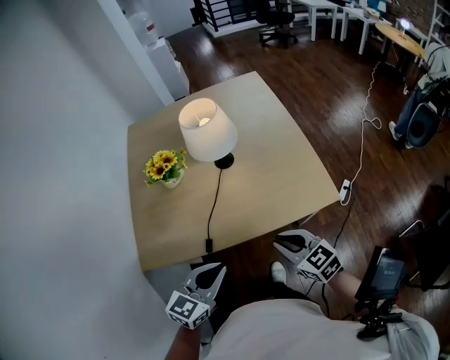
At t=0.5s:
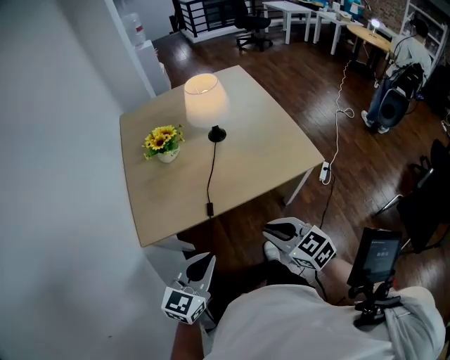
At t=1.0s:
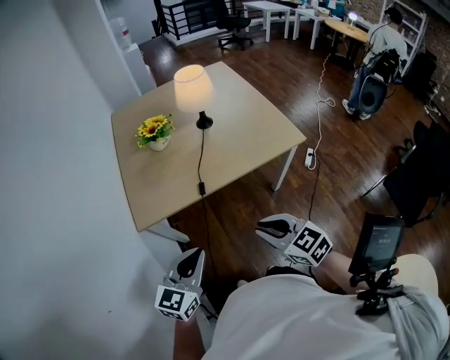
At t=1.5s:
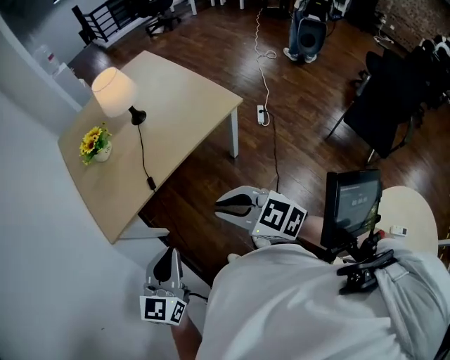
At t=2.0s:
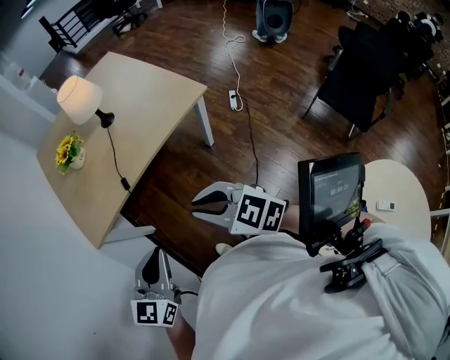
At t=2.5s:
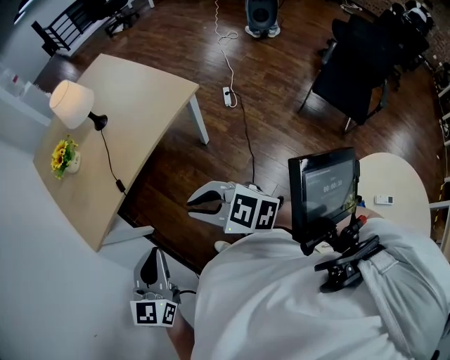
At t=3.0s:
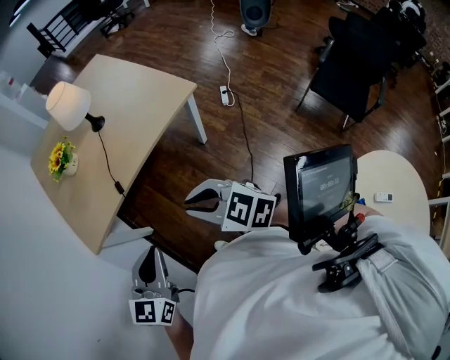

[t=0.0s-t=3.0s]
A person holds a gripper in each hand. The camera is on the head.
t=0.0s to t=1.5s: The grippers both shift backward and to the left by approximately 25 cm.
t=1.5s to t=3.0s: The two grippers go about 5 cm to the right.

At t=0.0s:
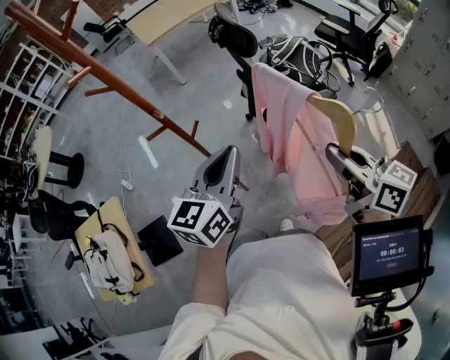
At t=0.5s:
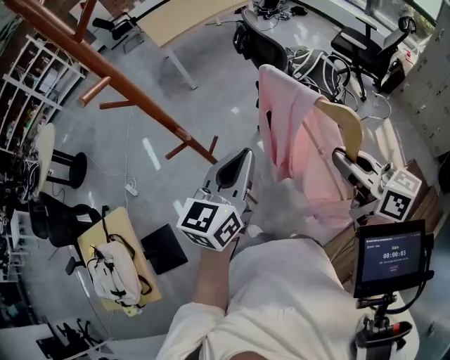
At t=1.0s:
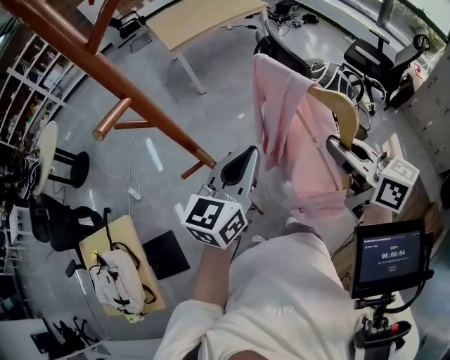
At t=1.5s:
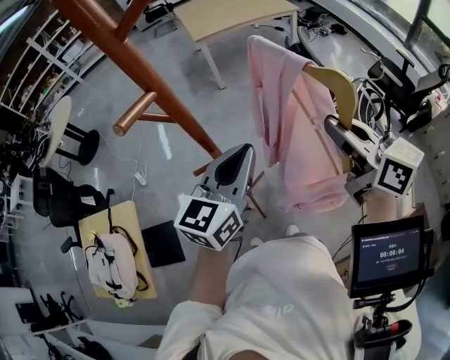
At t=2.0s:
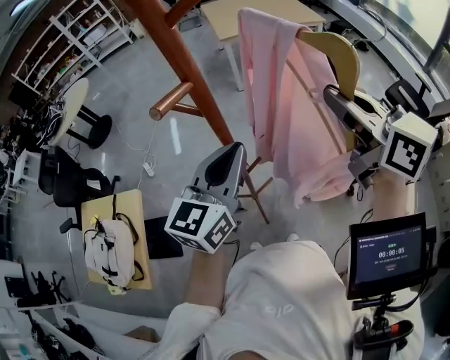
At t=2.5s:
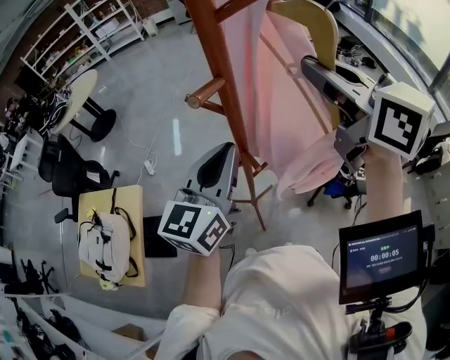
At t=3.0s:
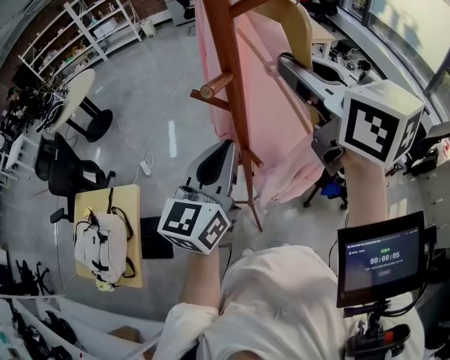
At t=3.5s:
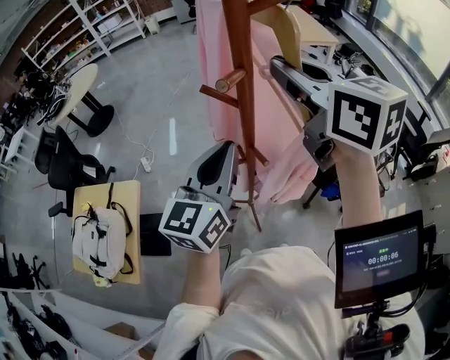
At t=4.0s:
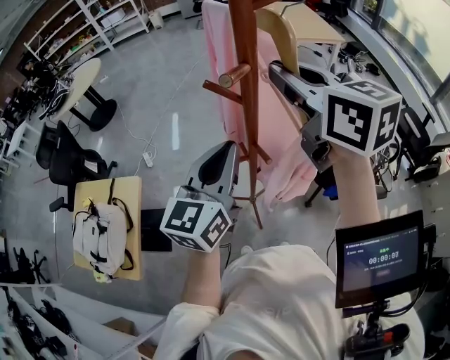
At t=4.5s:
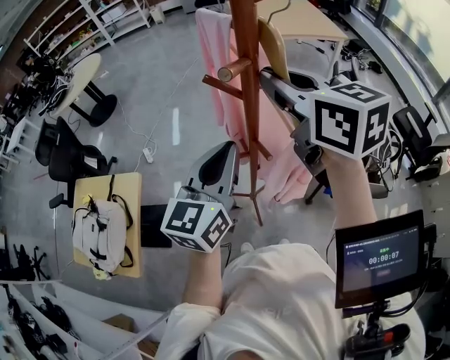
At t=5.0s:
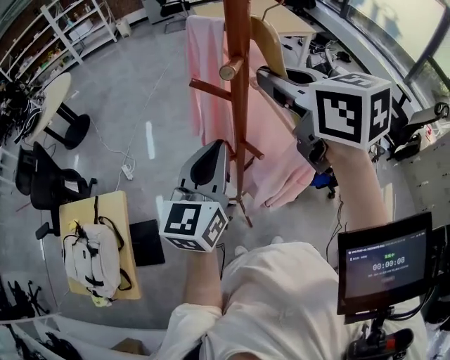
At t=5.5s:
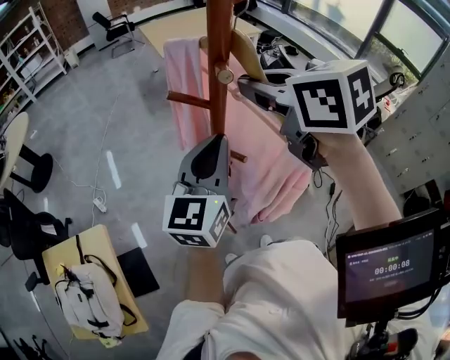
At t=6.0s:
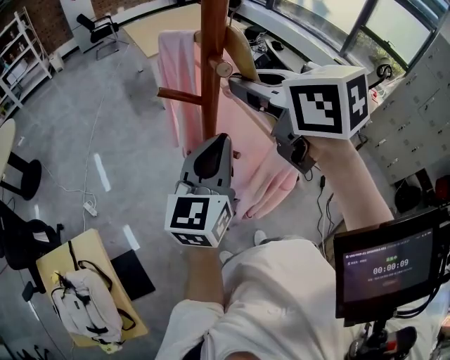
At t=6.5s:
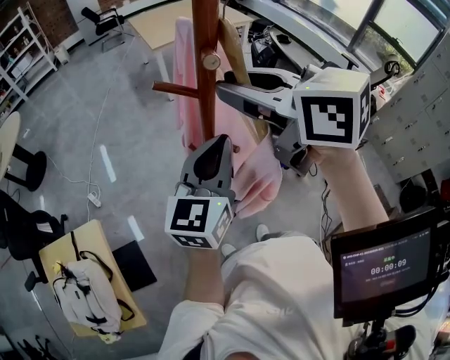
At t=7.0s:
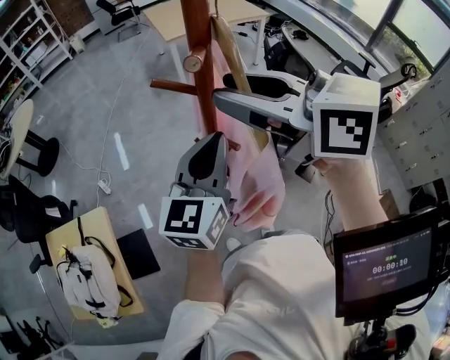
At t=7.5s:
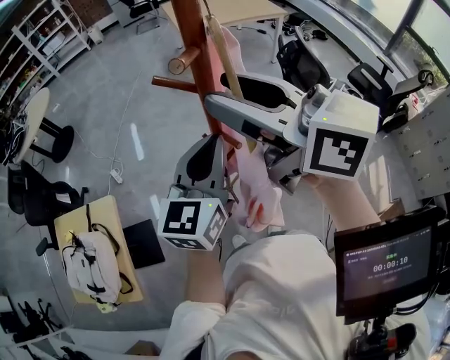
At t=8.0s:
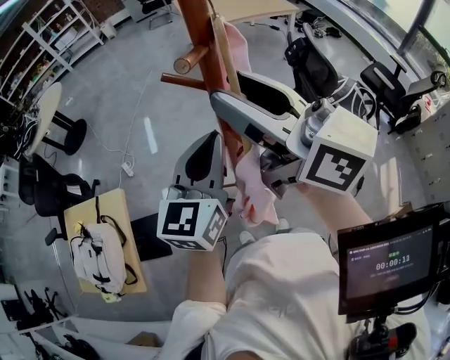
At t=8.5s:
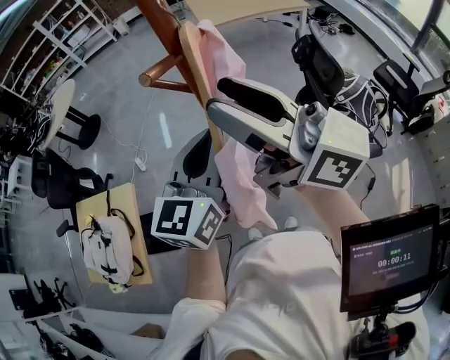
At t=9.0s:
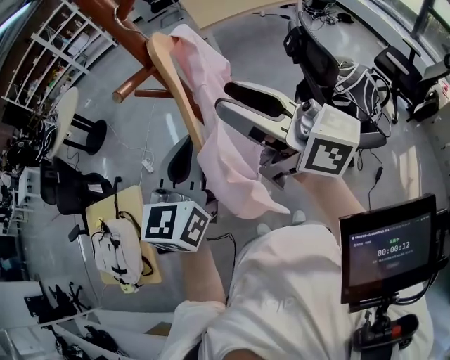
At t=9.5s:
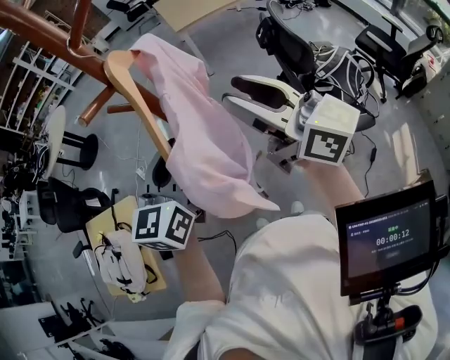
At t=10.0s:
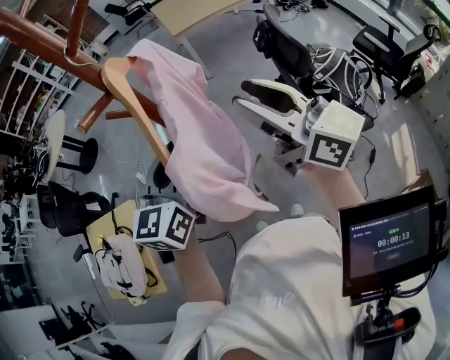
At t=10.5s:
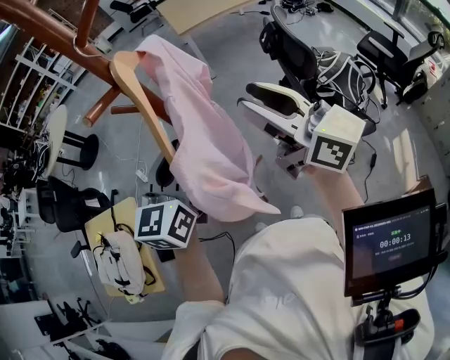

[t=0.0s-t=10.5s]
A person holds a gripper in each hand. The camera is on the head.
t=0.0s to t=2.0s: The left gripper shifts approximately 25 cm forward and to the left. Meanwhile the right gripper heads forward, to the left and upward, covering some 40 cm, and changes its angle by roughly 20 degrees.
t=2.0s to t=4.0s: The left gripper heads to the left, covering about 10 cm, while the right gripper heads to the left, covering approximately 15 cm.
t=4.0s to t=6.5s: The right gripper heads backward, covering about 5 cm.
t=6.5s to t=8.5s: The right gripper is displaced backward by approximately 5 cm, tilts its fingers about 40 degrees upward, and opens.
t=8.5s to t=10.5s: The right gripper travels to the right and downward by approximately 15 cm.

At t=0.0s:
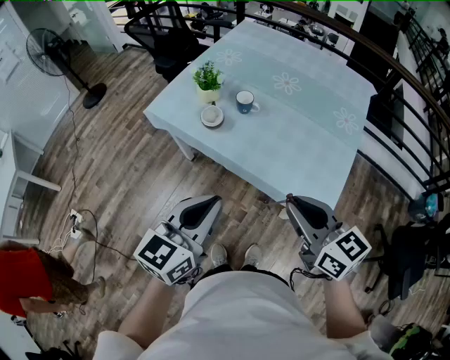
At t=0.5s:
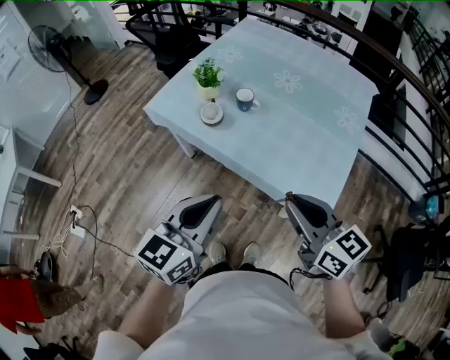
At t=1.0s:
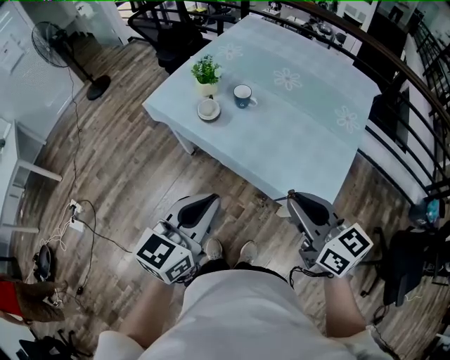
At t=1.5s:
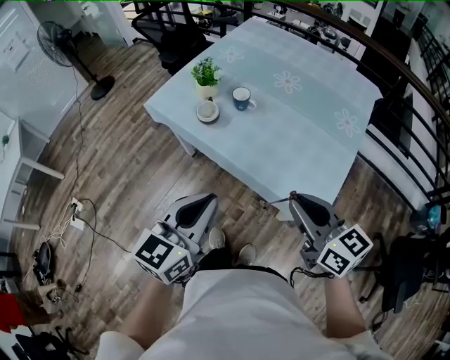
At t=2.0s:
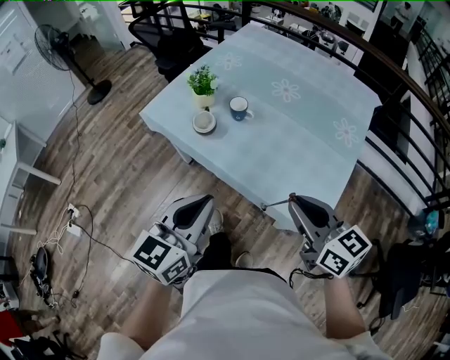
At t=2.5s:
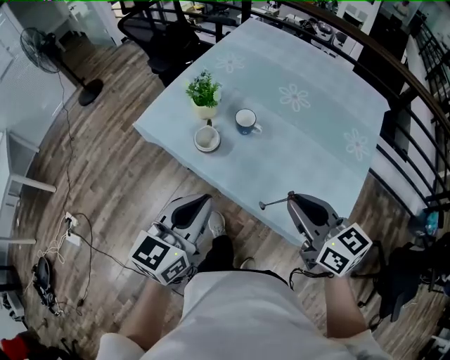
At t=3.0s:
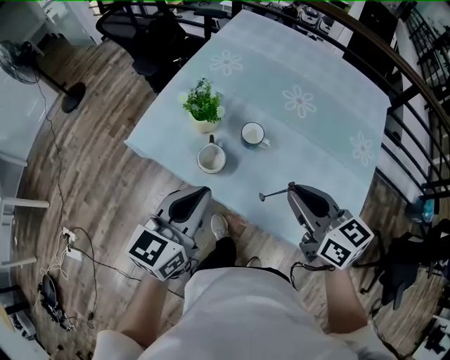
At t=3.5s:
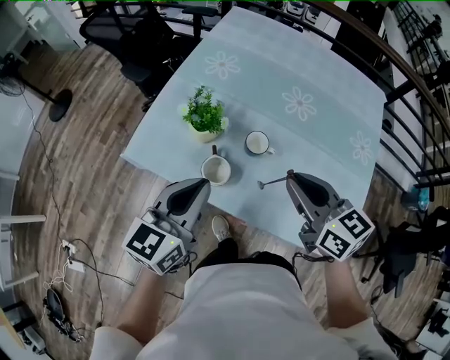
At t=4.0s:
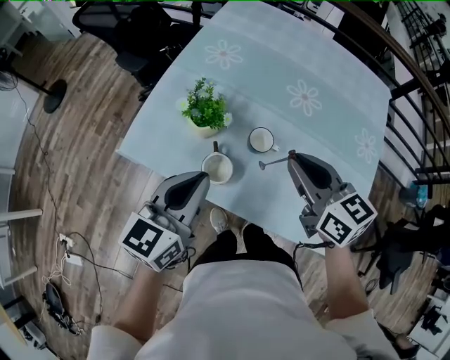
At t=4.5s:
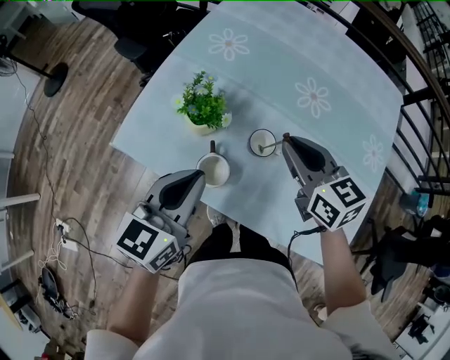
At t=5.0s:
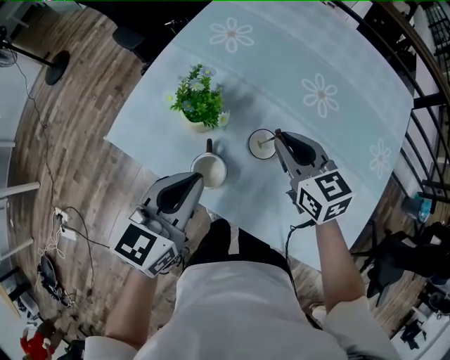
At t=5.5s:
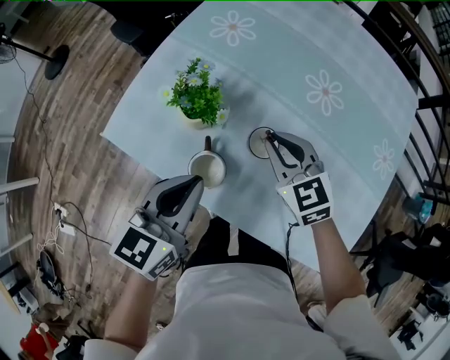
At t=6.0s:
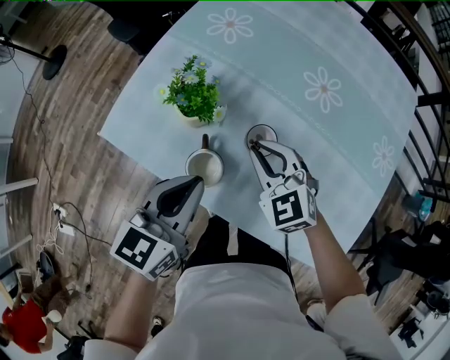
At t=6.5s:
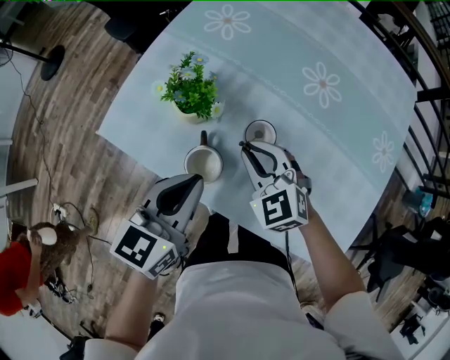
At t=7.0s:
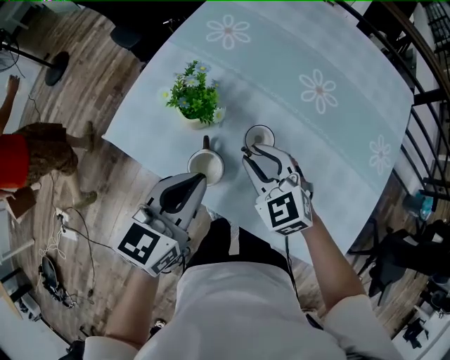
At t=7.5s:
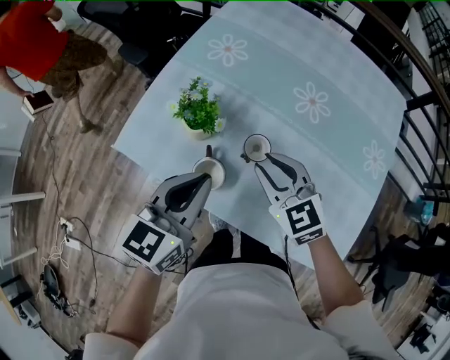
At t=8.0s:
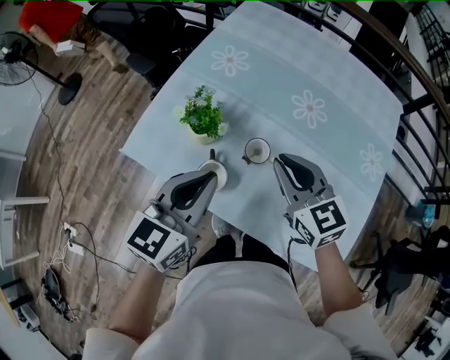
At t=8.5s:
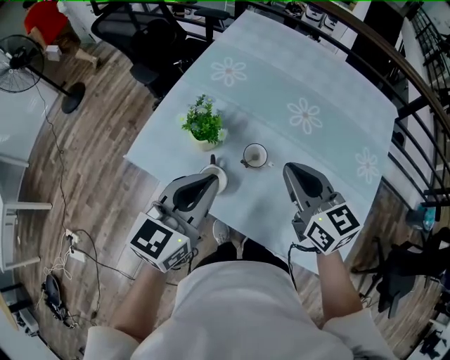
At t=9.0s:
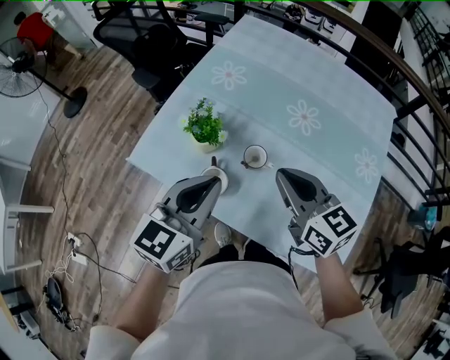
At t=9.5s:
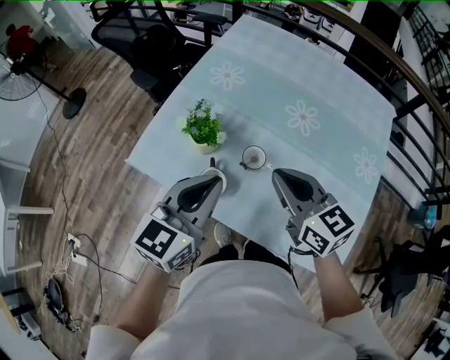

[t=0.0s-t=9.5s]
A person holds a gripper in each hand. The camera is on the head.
t=0.0s to t=2.0s: The right gripper moves to the right, approximately 5 cm, while the left gripper changes place by some 5 cm.
t=2.0s to t=4.0s: Both grippers move forward and to the left, some 35 cm.
t=4.0s to t=5.5s: The left gripper heads downward, covering about 10 cm; the right gripper moves downward and forward, some 15 cm, and rotates roughly 30 degrees.
t=5.5s to t=7.5s: The left gripper shifts some 5 cm upward. The right gripper heads upward and backward, covering some 10 cm.
t=7.5s to t=9.5s: The right gripper is displaced upward by about 10 cm, swivels roughly 20 degrees, and closes up, while the left gripper is displaced upward by roughly 5 cm.

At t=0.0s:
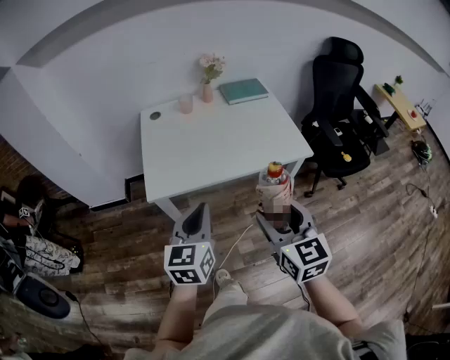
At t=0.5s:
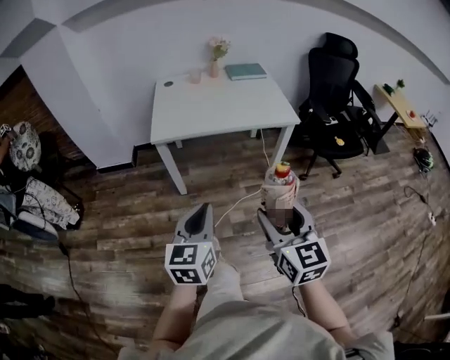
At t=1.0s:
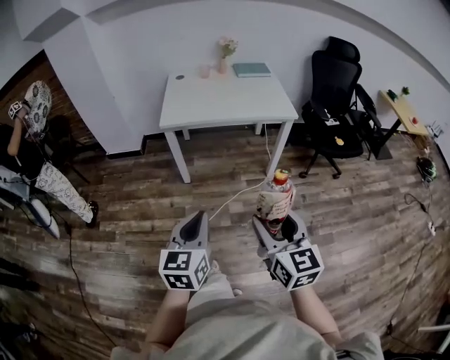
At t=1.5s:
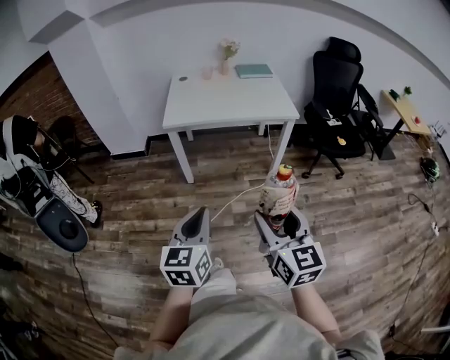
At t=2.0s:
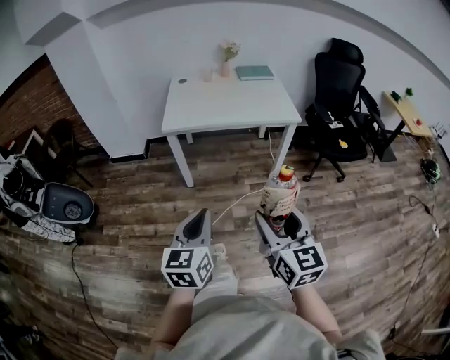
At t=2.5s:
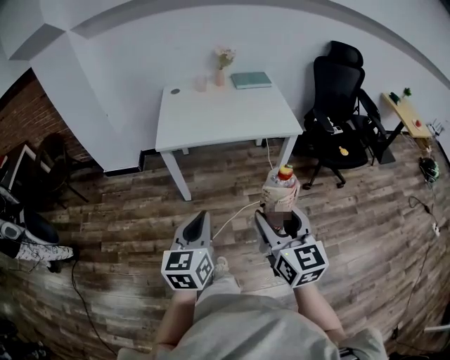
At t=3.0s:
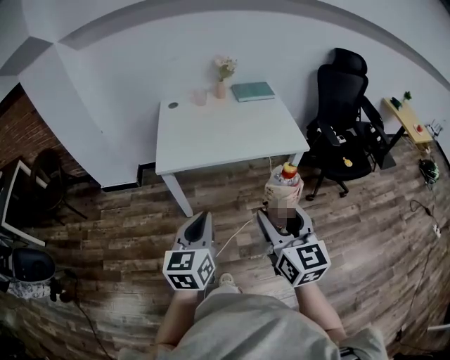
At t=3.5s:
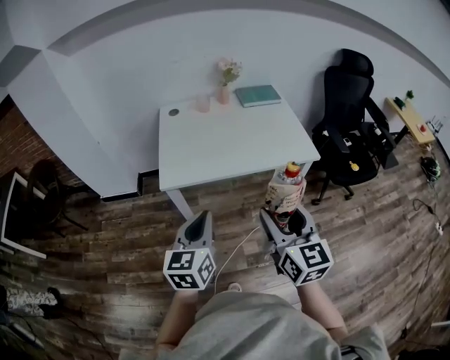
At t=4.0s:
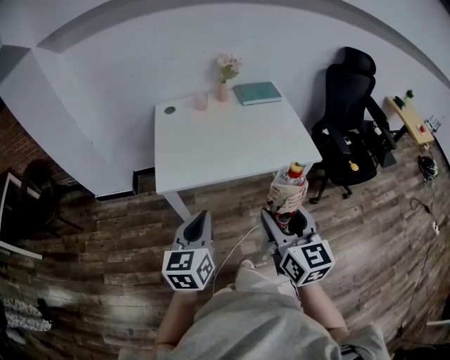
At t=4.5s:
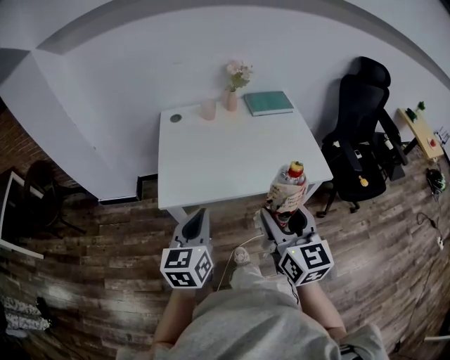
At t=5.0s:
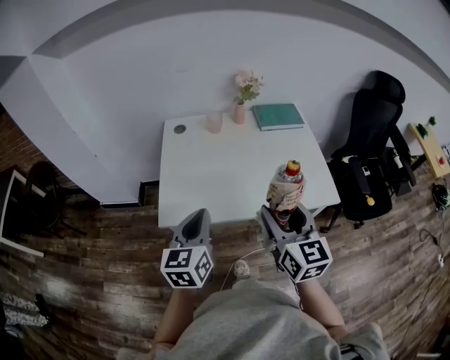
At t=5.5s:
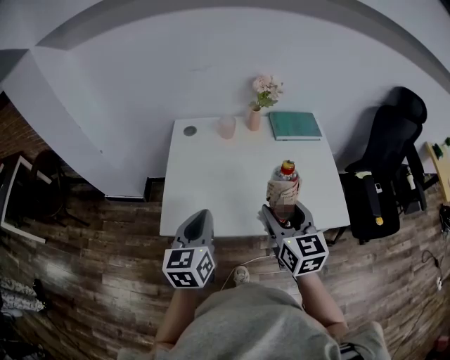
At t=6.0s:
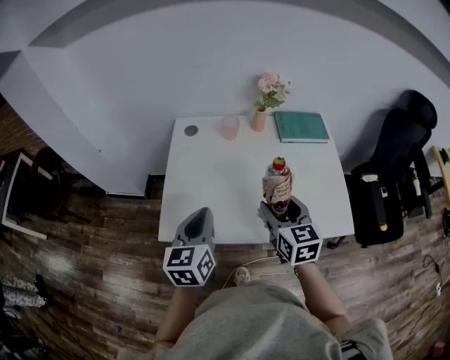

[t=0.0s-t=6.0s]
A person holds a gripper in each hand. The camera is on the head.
t=0.0s to t=2.0s: The grippers both shift backward by some 40 cm.
t=2.0s to t=4.0s: The two grippers go roughly 35 cm forward.
t=4.0s to t=6.0s: Both grippers move forward, about 30 cm.
